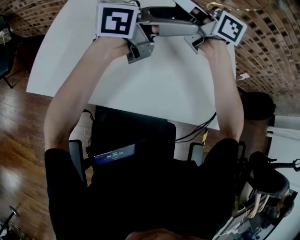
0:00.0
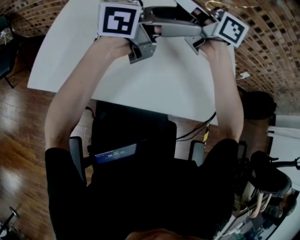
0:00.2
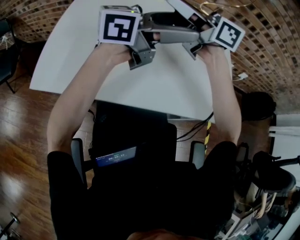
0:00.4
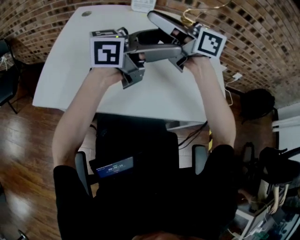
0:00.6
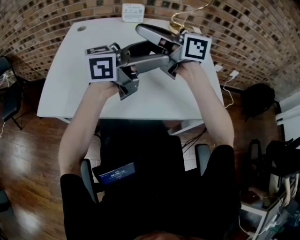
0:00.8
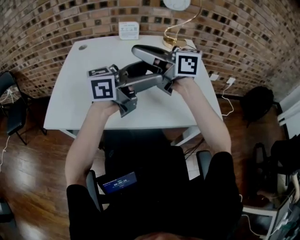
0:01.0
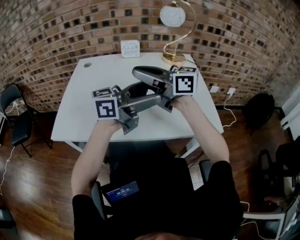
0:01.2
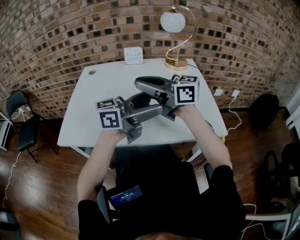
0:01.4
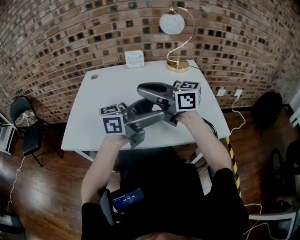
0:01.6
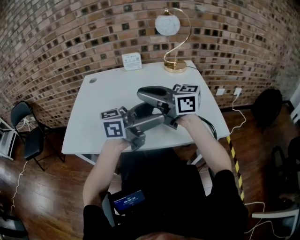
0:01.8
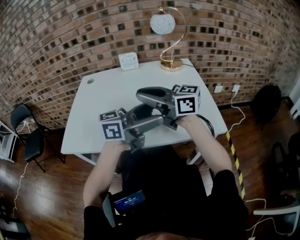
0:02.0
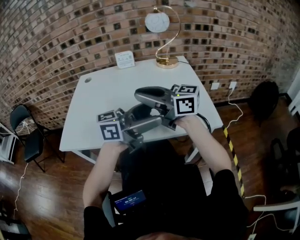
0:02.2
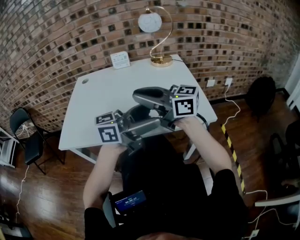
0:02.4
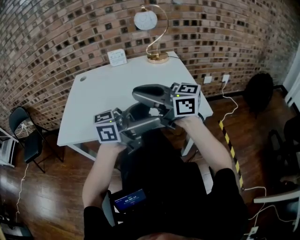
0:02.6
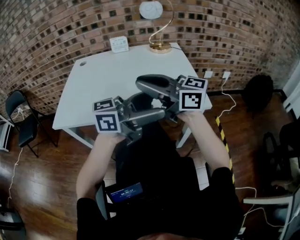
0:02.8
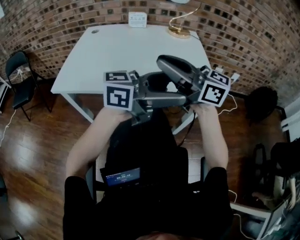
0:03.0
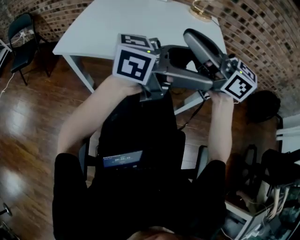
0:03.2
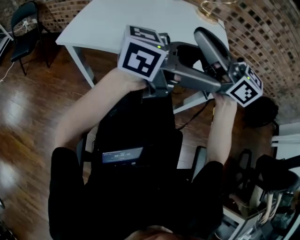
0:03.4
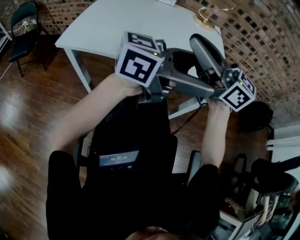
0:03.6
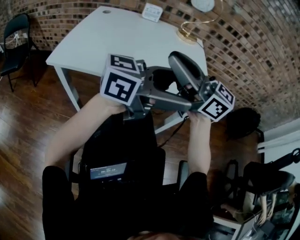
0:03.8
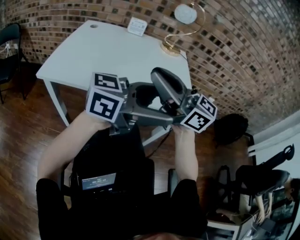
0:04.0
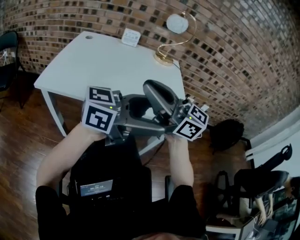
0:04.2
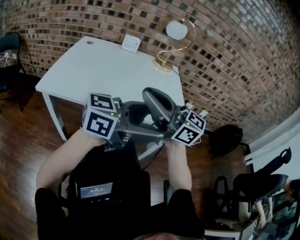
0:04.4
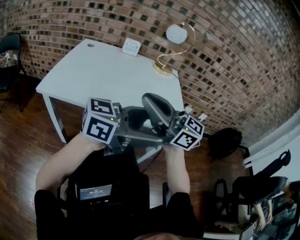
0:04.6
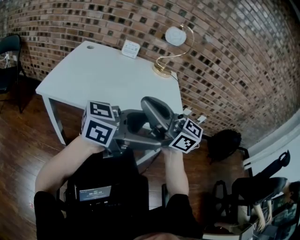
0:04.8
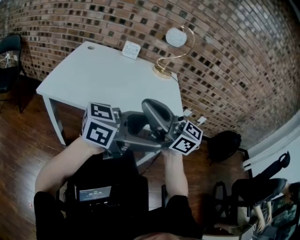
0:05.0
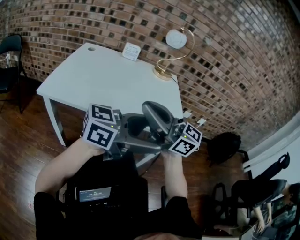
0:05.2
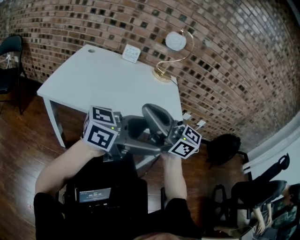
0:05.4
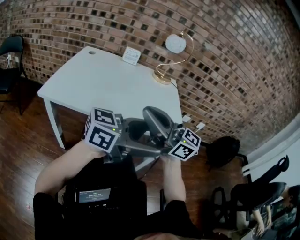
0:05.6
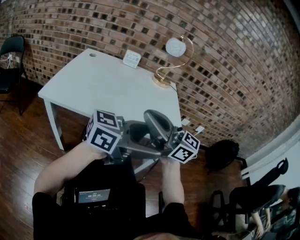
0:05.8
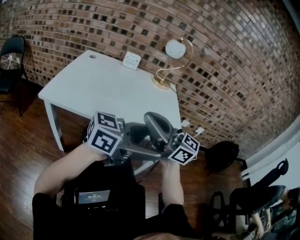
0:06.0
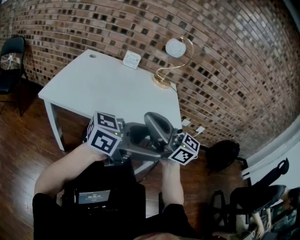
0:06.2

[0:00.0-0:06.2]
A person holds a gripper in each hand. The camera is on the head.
0:00.0 to 0:01.6: The right gripper changes place by roughly 15 cm; the left gripper changes place by about 15 cm.
0:01.6 to 0:03.2: The right gripper shifts by about 15 cm, while the left gripper moves roughly 15 cm.
0:03.2 to 0:04.6: The right gripper changes place by approximately 5 cm. The left gripper changes place by some 5 cm.
0:04.6 to 0:06.2: The grippers stay close to where they were, moving slightly.

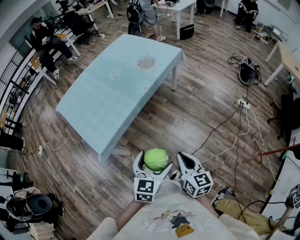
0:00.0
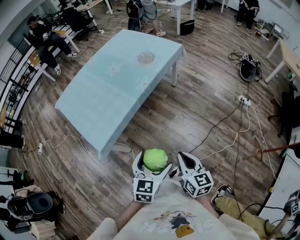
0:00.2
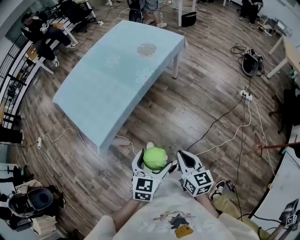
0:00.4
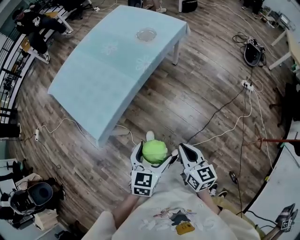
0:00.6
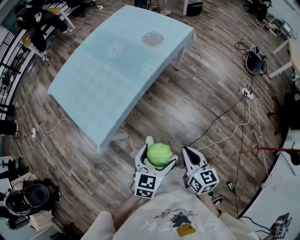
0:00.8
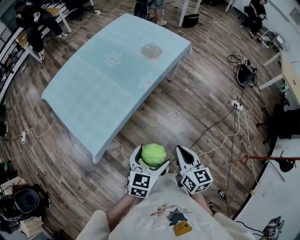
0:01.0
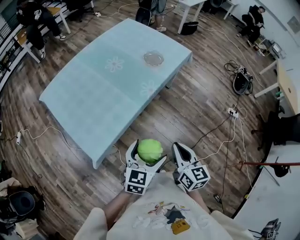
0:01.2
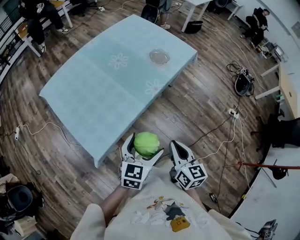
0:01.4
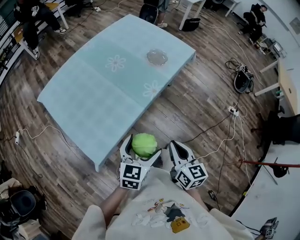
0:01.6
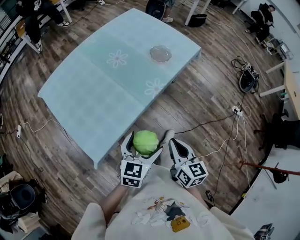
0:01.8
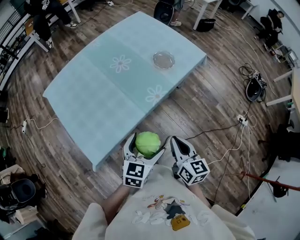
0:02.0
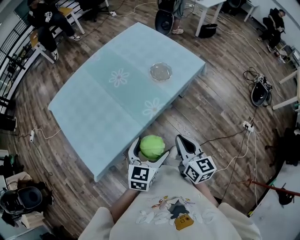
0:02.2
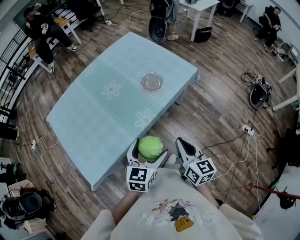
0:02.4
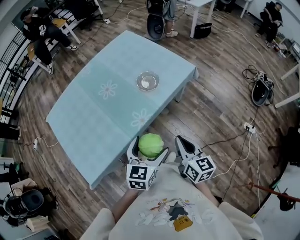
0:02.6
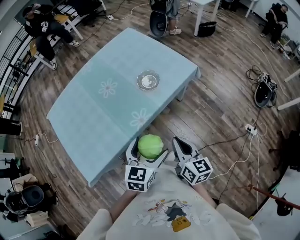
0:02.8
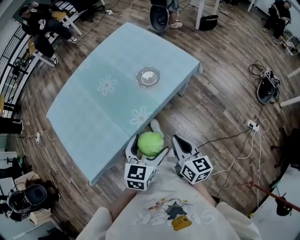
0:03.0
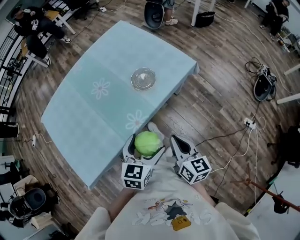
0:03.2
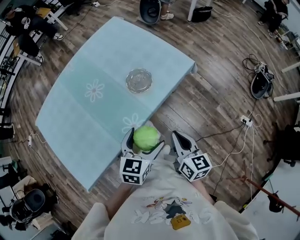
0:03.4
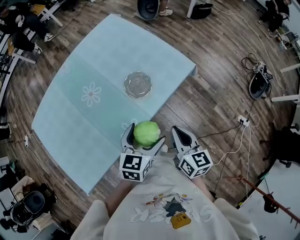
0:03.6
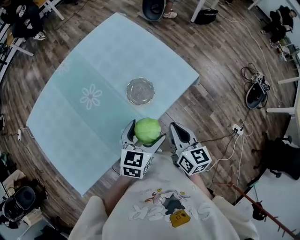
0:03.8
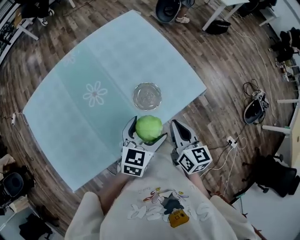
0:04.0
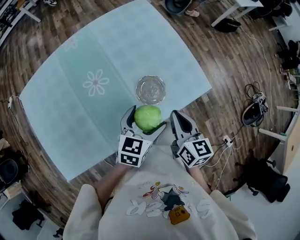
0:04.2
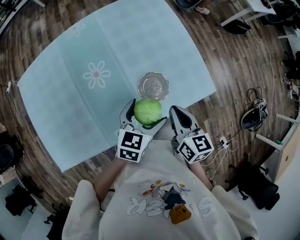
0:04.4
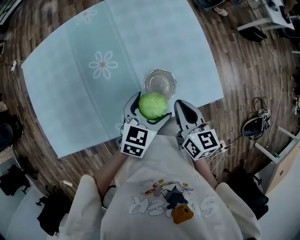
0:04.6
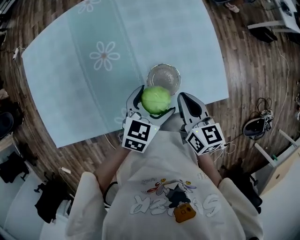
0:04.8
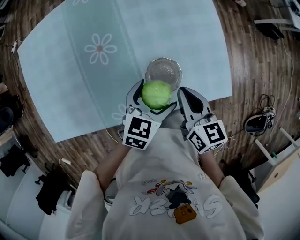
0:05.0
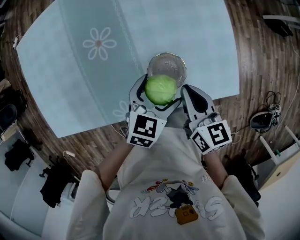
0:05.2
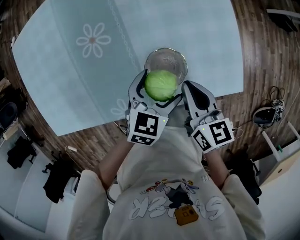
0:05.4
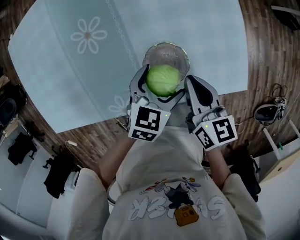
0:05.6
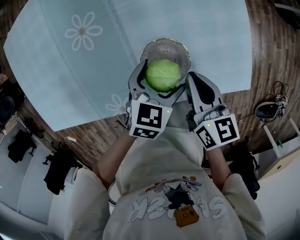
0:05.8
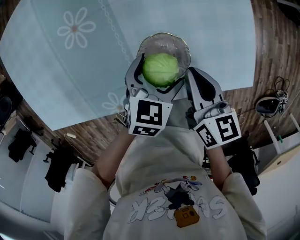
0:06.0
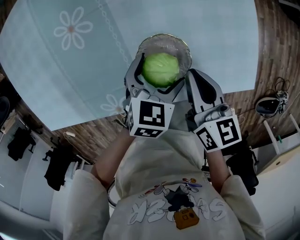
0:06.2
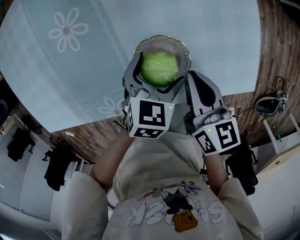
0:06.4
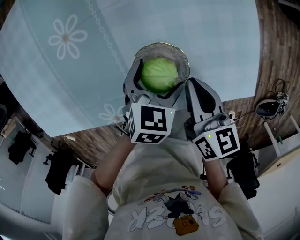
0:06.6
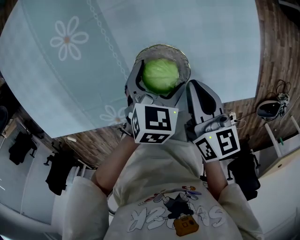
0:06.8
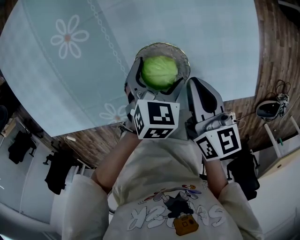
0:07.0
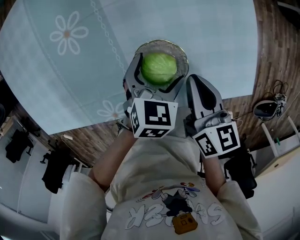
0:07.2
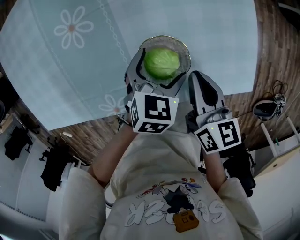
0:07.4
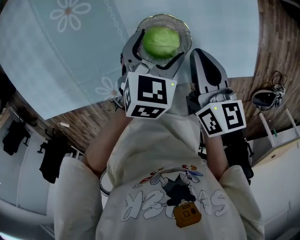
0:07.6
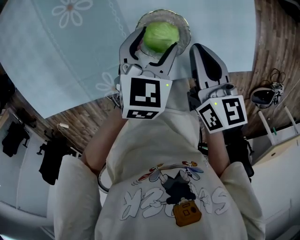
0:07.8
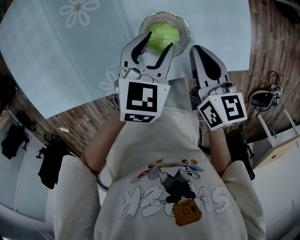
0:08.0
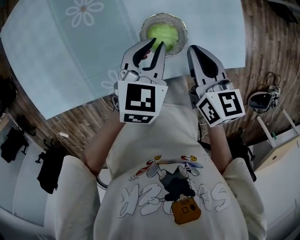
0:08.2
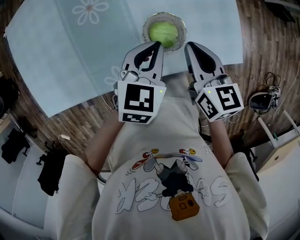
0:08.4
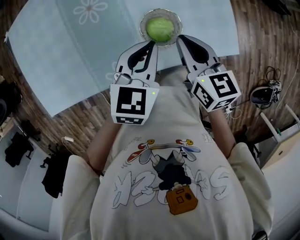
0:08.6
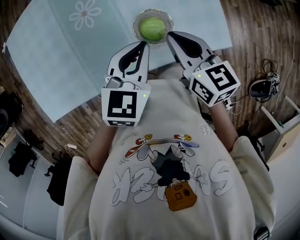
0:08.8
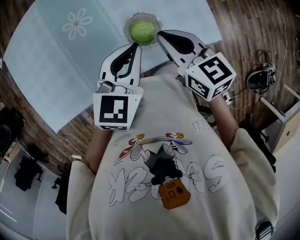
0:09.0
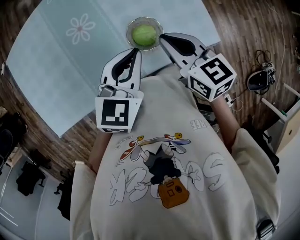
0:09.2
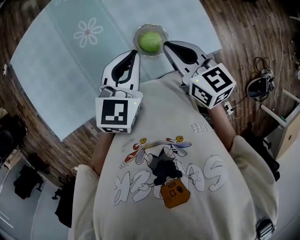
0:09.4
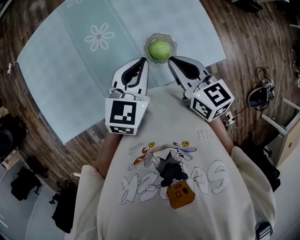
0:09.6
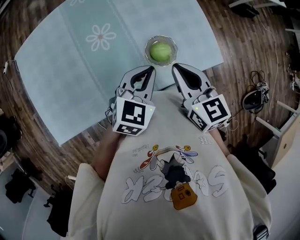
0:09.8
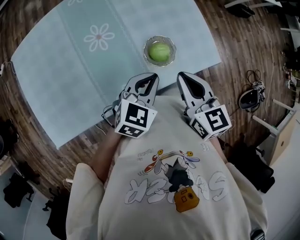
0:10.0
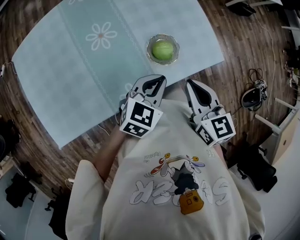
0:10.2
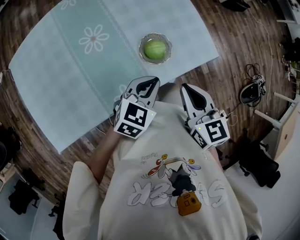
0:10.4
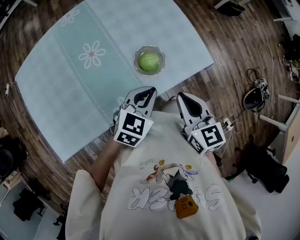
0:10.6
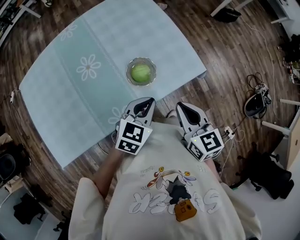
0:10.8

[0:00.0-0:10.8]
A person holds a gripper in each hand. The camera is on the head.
0:00.0 to 0:01.6: The grippers both shift forward and to the left by some 25 cm.
0:01.6 to 0:03.0: The two grippers go approximately 25 cm forward and to the right.
0:03.0 to 0:04.6: Both grippers travel together forward, roughly 35 cm. The right gripper changes its angle by roughly 30 degrees.
0:04.6 to 0:06.2: The grippers both shift downward by about 15 cm.
0:06.2 to 0:07.8: The left gripper shifts by about 5 cm, and closes its fingers.
0:07.8 to 0:09.2: Both grippers travel together upward, some 20 cm. The left gripper turns by some 20 degrees, and closes its fingers.
0:09.2 to 0:10.8: The left gripper shifts approximately 10 cm backward, to the right and downward, while the right gripper is displaced backward and to the right by some 15 cm, and turns by about 20 degrees.

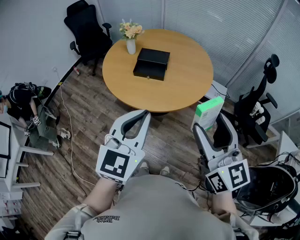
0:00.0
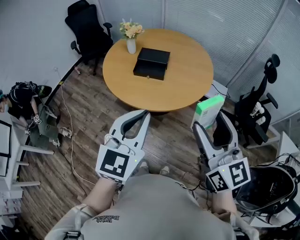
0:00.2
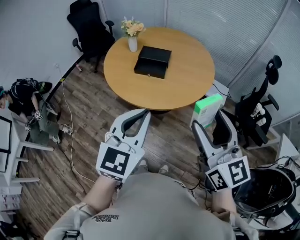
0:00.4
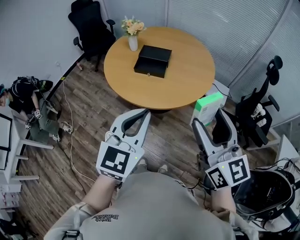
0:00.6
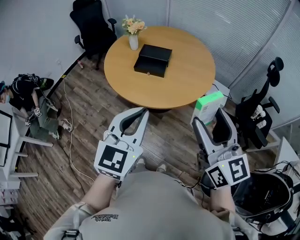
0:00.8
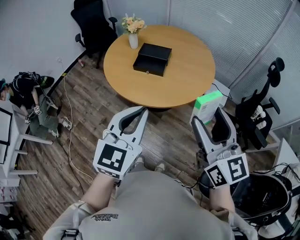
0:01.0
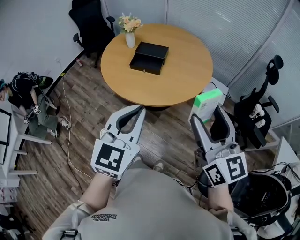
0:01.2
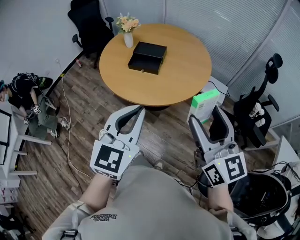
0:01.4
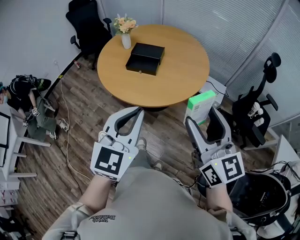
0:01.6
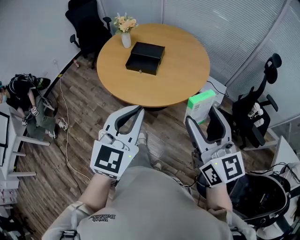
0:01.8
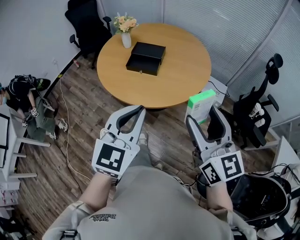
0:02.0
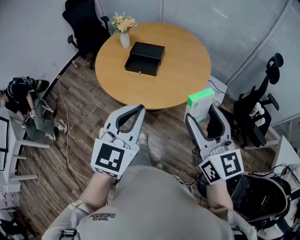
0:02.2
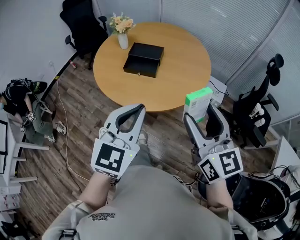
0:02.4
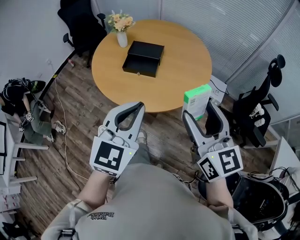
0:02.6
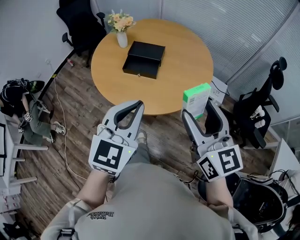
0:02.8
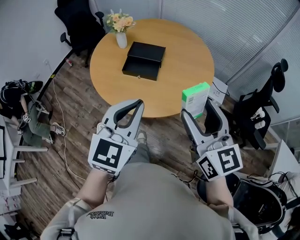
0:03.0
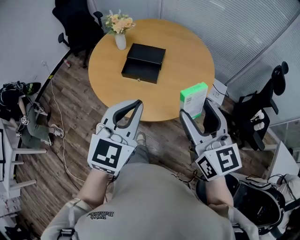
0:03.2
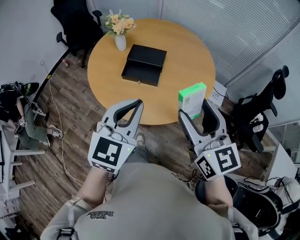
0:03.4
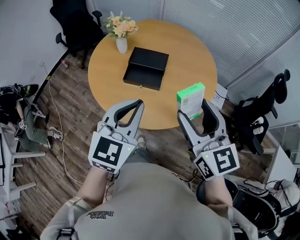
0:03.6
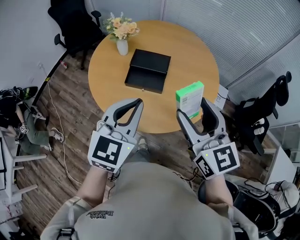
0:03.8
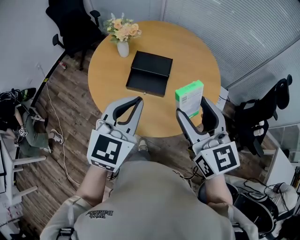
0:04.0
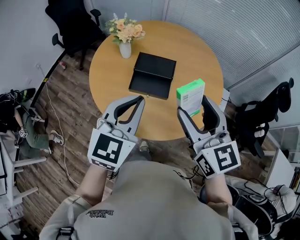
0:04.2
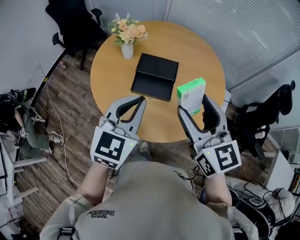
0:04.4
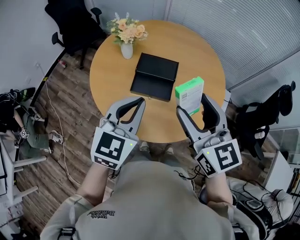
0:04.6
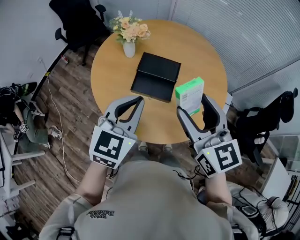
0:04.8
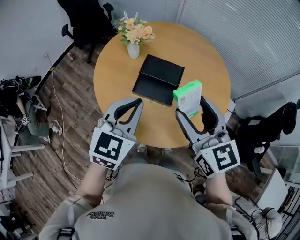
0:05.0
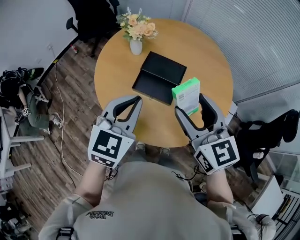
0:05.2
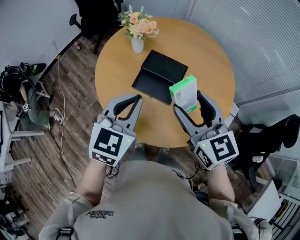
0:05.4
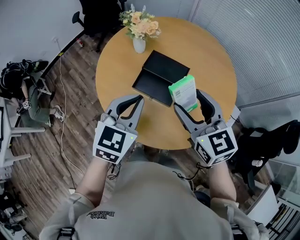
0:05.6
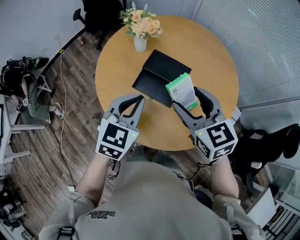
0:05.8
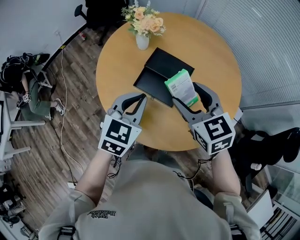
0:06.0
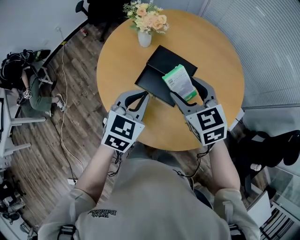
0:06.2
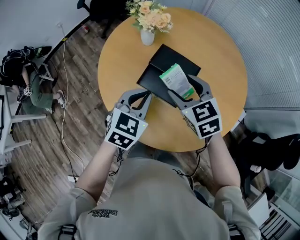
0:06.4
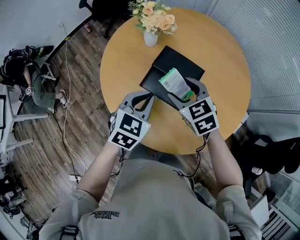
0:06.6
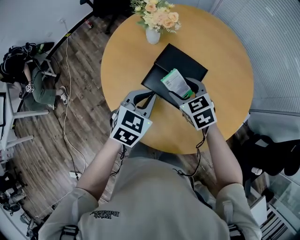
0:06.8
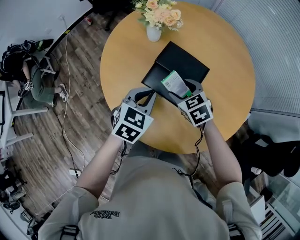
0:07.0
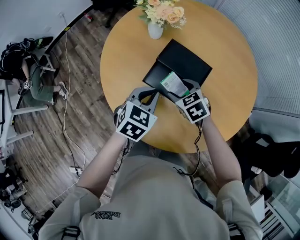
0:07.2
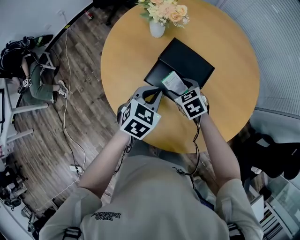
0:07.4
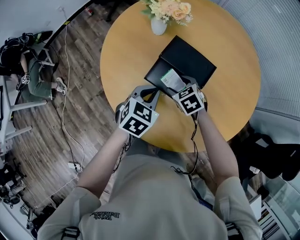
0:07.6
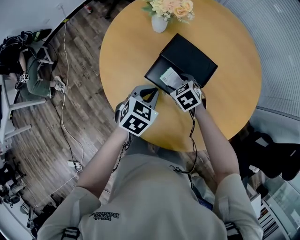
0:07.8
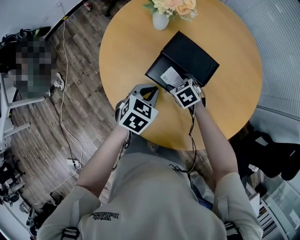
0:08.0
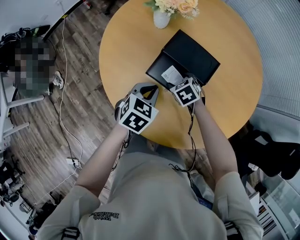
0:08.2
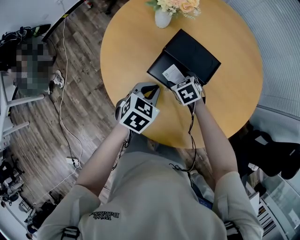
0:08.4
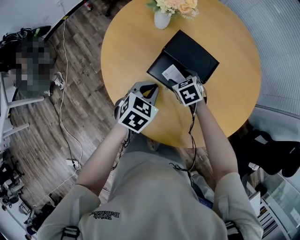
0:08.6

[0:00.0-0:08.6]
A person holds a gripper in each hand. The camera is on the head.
0:00.0 to 0:01.4: Both grippers travel together to the right, roughly 5 cm.
0:01.4 to 0:02.8: The grippers both shift forward by some 10 cm.
0:02.8 to 0:04.4: Both grippers travel together forward and to the left, roughly 25 cm.
0:04.4 to 0:05.8: The right gripper travels forward and downward by roughly 15 cm, and swivels about 30 degrees. The left gripper is displaced downward and forward by approximately 10 cm.
0:05.8 to 0:07.2: The left gripper goes roughly 15 cm downward and forward. The right gripper goes some 25 cm downward and forward, and turns by roughly 30 degrees.
0:07.2 to 0:08.6: The left gripper moves some 5 cm. Meanwhile the right gripper heads downward, covering approximately 5 cm.
